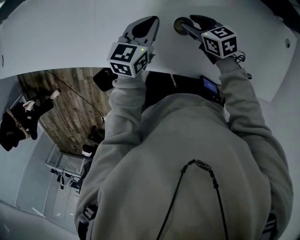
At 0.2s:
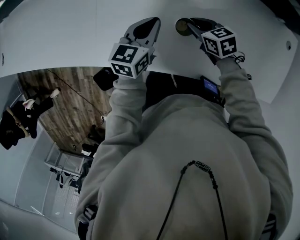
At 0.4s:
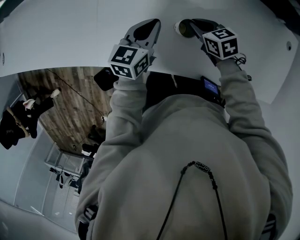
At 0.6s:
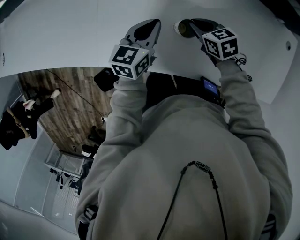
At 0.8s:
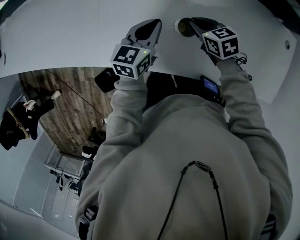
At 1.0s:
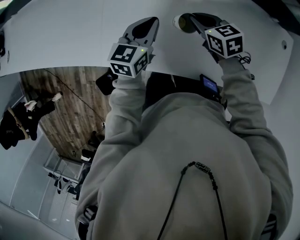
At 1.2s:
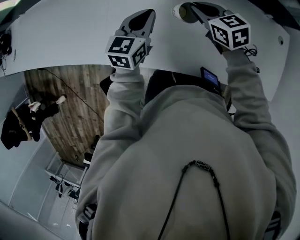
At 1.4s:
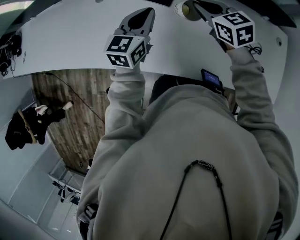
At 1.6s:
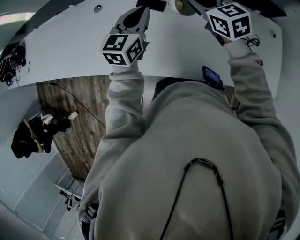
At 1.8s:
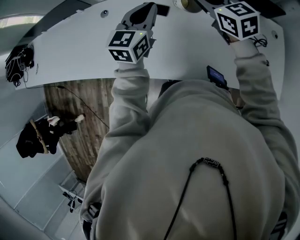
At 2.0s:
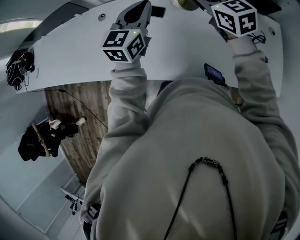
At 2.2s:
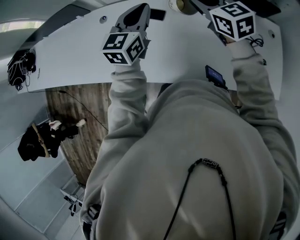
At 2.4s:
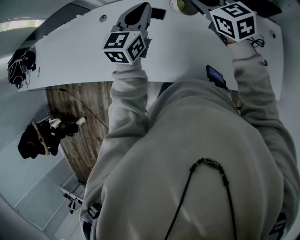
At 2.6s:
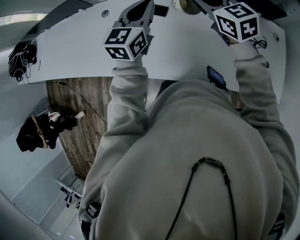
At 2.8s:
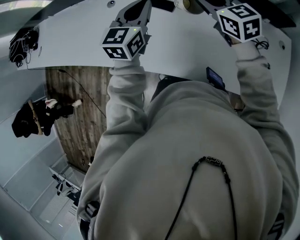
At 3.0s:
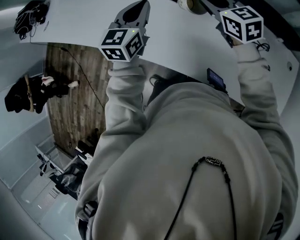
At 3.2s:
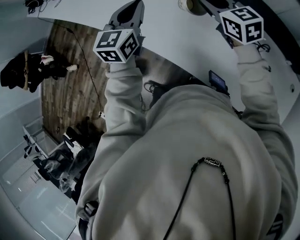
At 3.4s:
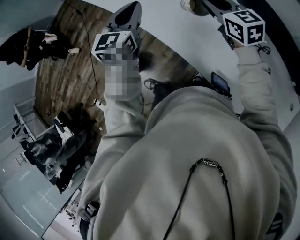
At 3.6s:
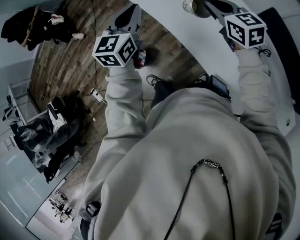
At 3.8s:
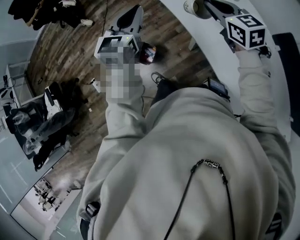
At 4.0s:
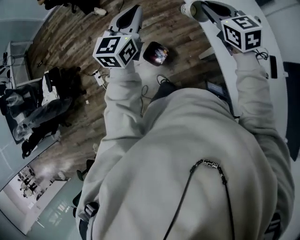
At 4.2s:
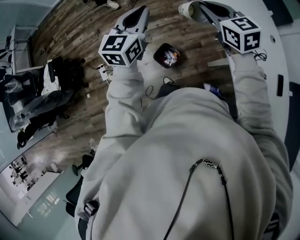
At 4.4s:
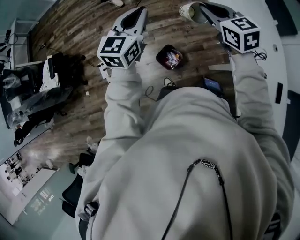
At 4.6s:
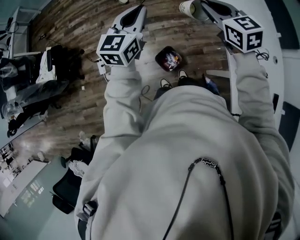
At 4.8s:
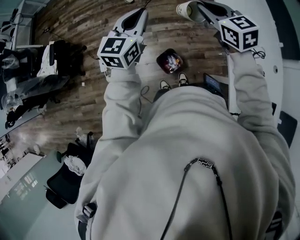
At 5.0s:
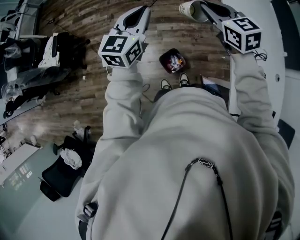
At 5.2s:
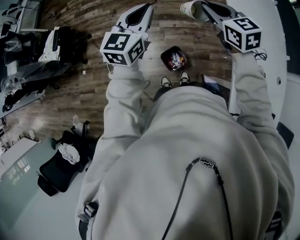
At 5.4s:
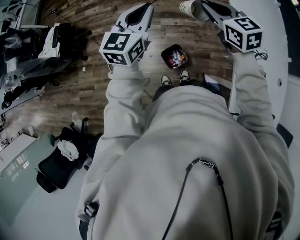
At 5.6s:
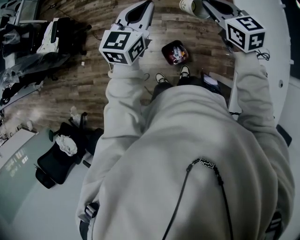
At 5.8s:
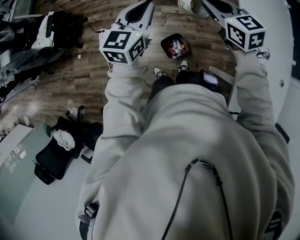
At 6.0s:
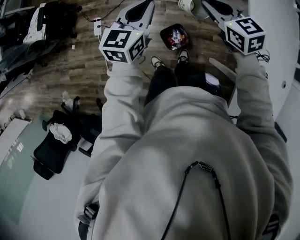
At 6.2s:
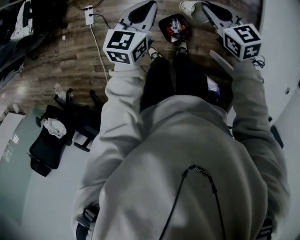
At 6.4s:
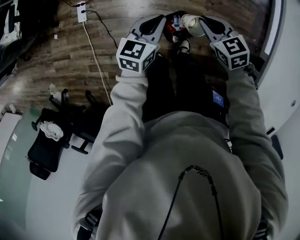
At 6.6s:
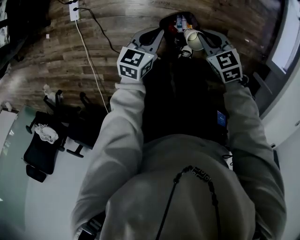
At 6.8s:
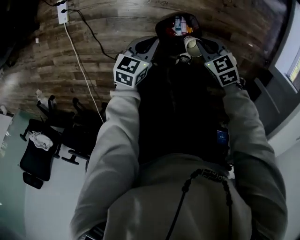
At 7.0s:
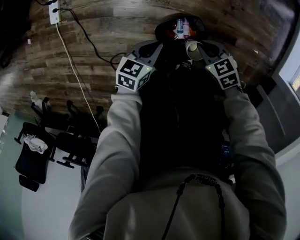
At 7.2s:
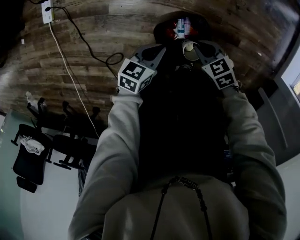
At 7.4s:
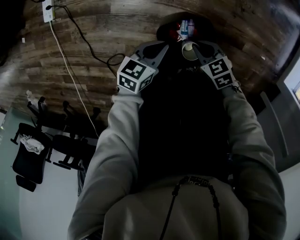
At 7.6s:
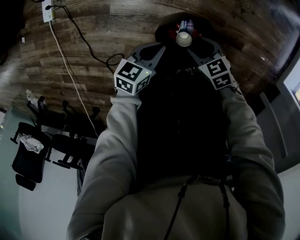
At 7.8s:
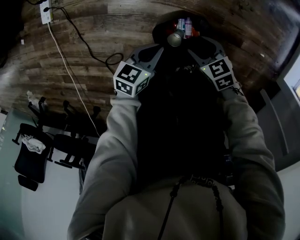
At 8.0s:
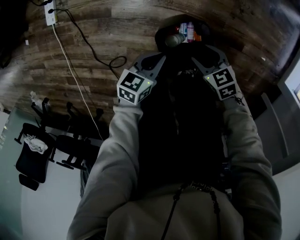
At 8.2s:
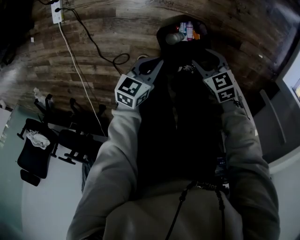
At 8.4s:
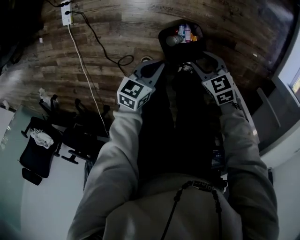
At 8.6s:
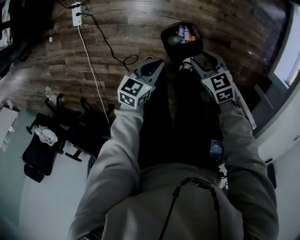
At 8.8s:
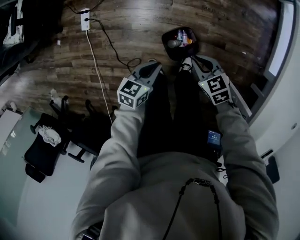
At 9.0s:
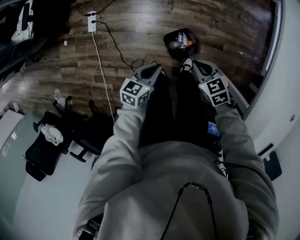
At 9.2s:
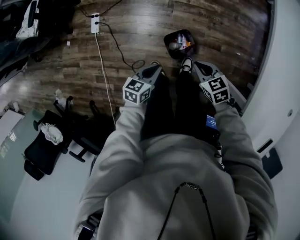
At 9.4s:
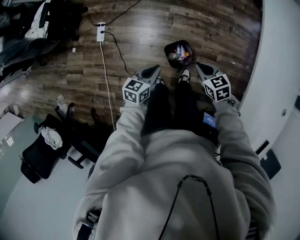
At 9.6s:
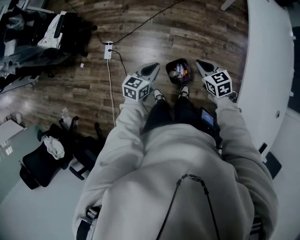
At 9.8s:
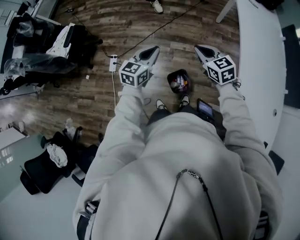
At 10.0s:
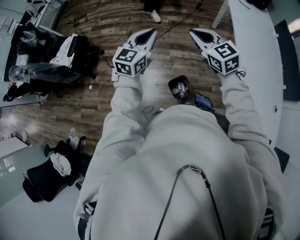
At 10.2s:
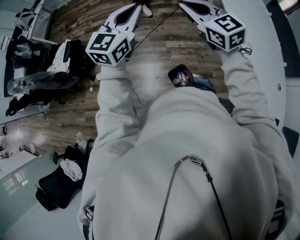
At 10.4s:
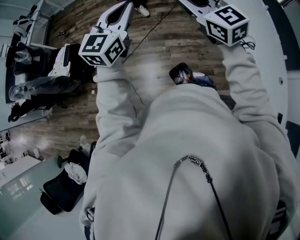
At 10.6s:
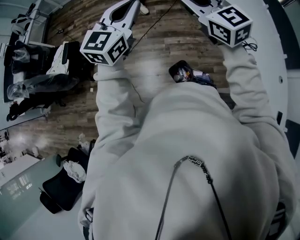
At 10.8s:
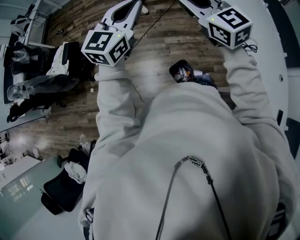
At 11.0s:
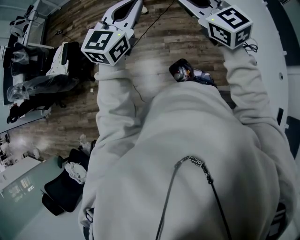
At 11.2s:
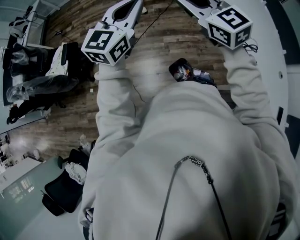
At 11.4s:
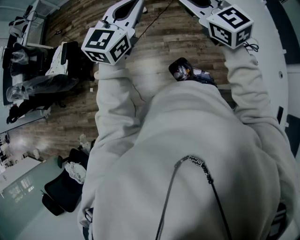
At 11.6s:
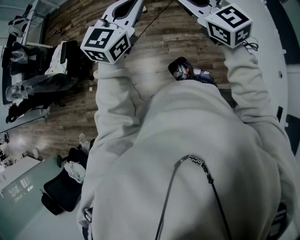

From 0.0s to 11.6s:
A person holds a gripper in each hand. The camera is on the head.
From 0.0s to 1.4s: Both grippers move upward, about 20 cm. The right gripper changes its angle by approximately 20 degrees, and closes.
From 1.4s to 2.8s: The two grippers go roughly 5 cm upward.
From 2.8s to 4.4s: Both grippers are carried about 90 cm. The right gripper rotates some 60 degrees. Meanwhile the left gripper turns by approximately 70 degrees.
From 4.4s to 5.8s: The right gripper goes some 15 cm to the left and forward. Meanwhile the left gripper goes approximately 10 cm to the left.
From 5.8s to 7.2s: The two grippers go about 80 cm downward. The left gripper swivels some 40 degrees. The right gripper points its fingers about 30 degrees further downward.
From 7.2s to 8.8s: The grippers both shift upward by about 35 cm. The right gripper opens, then closes once more.
From 8.8s to 10.2s: The two grippers go approximately 60 cm upward. The right gripper points its fingers approximately 40 degrees further upward, while the left gripper tips its fingers upward by roughly 40 degrees.
From 10.2s to 11.6s: The right gripper ends up some 5 cm from where it was.

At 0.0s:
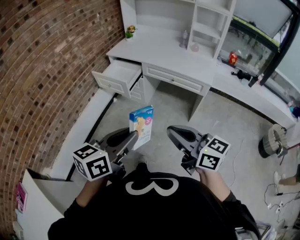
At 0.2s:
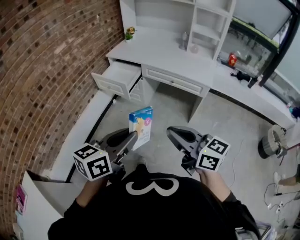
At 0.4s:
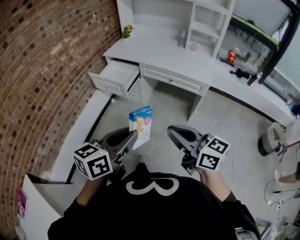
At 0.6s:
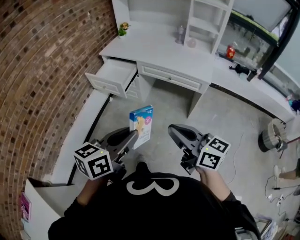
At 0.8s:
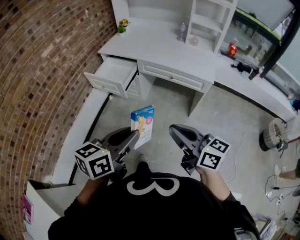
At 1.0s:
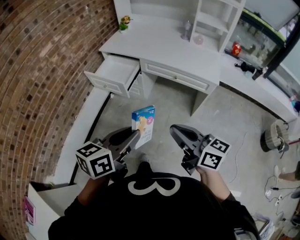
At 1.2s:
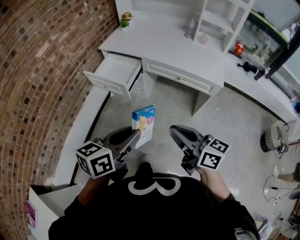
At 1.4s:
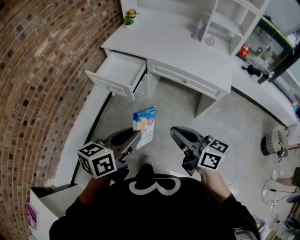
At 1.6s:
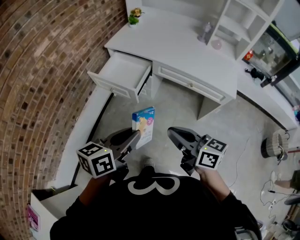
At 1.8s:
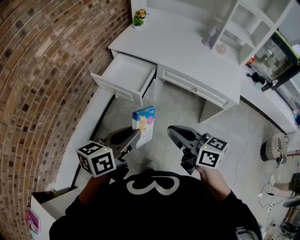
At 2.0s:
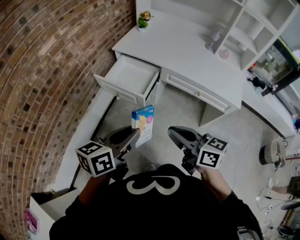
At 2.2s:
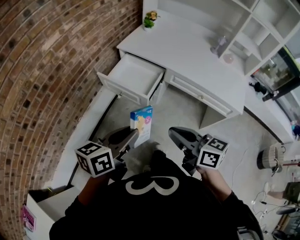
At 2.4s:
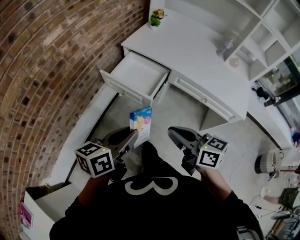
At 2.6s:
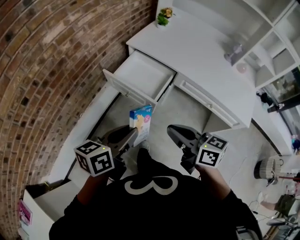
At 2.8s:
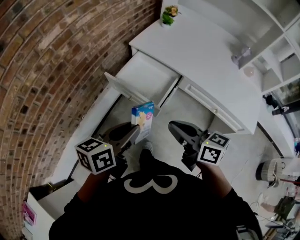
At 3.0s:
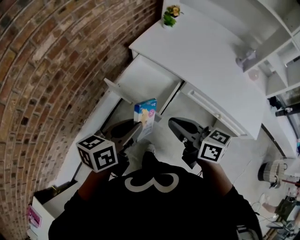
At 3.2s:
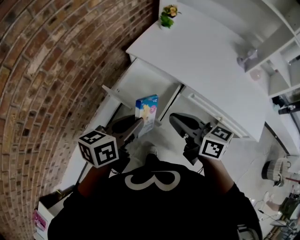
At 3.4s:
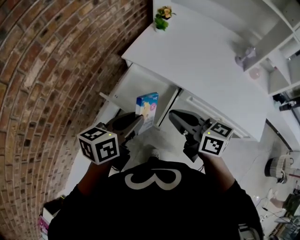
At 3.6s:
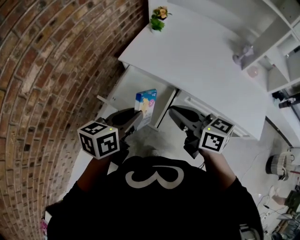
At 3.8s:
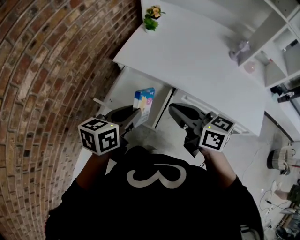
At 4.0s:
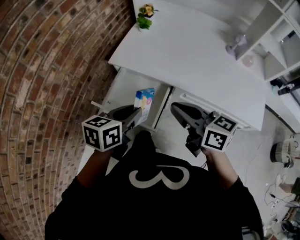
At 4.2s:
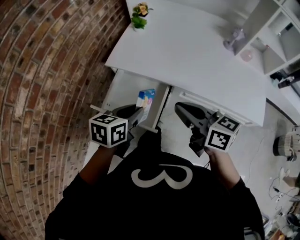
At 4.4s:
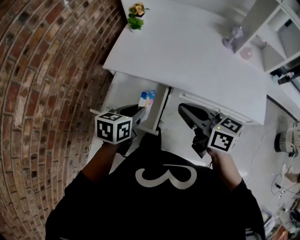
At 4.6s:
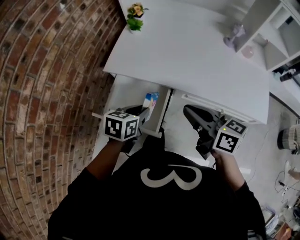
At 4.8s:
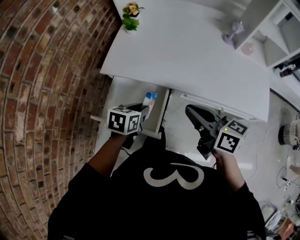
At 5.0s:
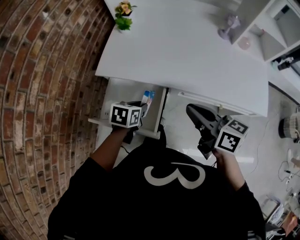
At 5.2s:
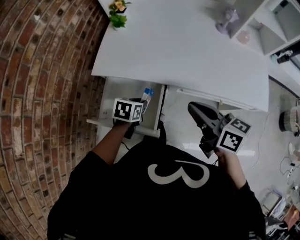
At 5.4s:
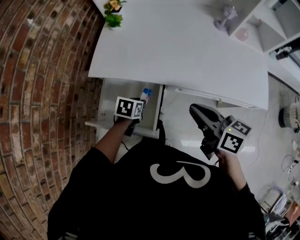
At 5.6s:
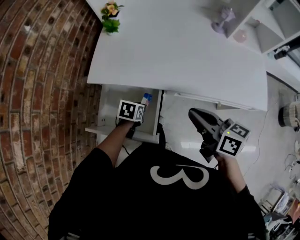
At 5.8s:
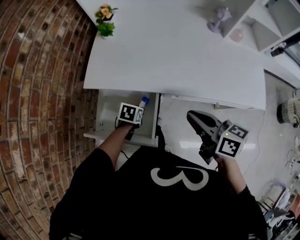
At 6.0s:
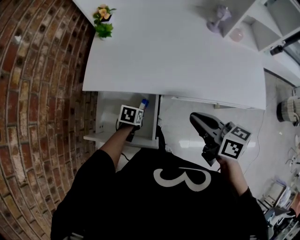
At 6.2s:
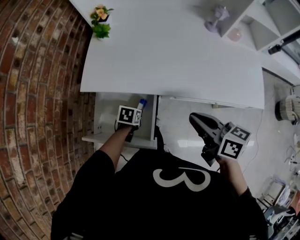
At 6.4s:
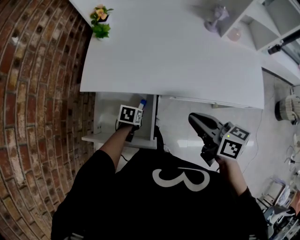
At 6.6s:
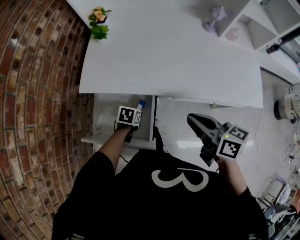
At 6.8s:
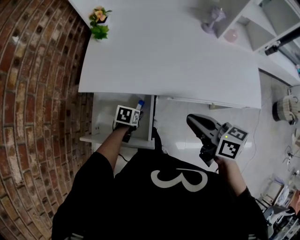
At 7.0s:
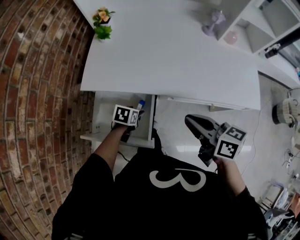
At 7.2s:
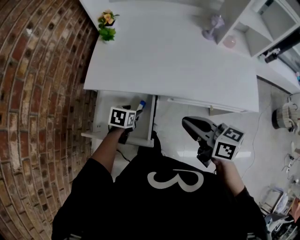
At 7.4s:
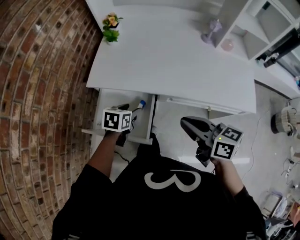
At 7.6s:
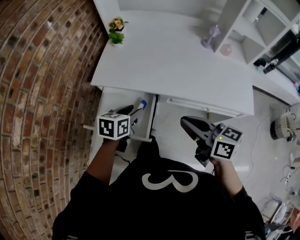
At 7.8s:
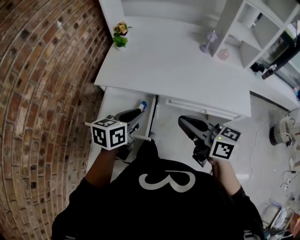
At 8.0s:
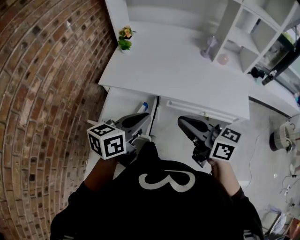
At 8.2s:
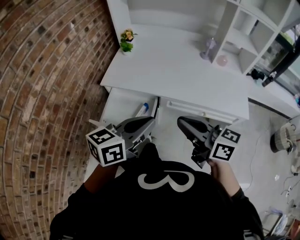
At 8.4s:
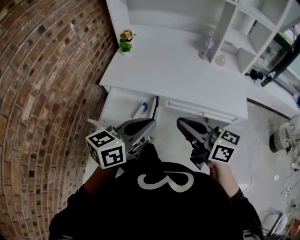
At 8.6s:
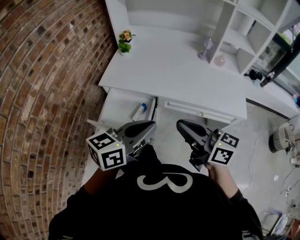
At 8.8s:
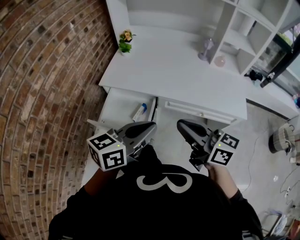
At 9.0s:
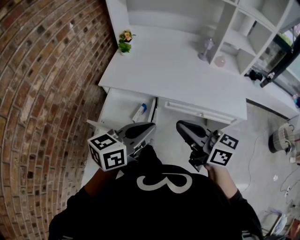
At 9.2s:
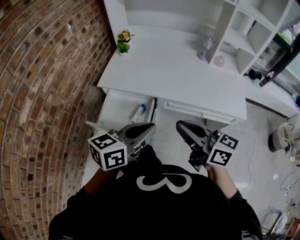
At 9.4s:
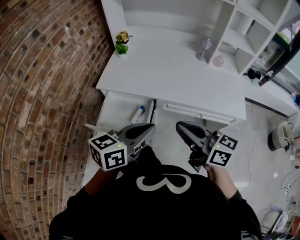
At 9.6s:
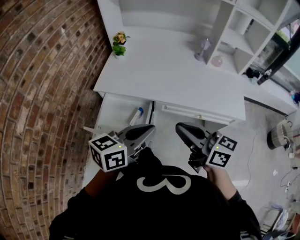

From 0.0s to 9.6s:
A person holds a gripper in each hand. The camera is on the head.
From 0.0s to 1.6s: The grippers both shift forward by roughly 25 cm.
From 1.6s to 3.2s: Both grippers travel together forward, some 30 cm.
From 3.2s to 4.8s: The left gripper goes approximately 25 cm forward, downward and to the right, and turns by some 40 degrees; the right gripper moves to the right and forward, approximately 15 cm, and changes its angle by some 20 degrees.
From 4.8s to 6.4s: The left gripper goes about 20 cm downward, and swivels roughly 20 degrees, while the right gripper travels to the right by approximately 5 cm.
From 6.4s to 8.0s: The left gripper moves upward, roughly 35 cm, tips its fingers upward by some 50 degrees, and opens, then closes once more. The right gripper heads upward and backward, covering approximately 15 cm, and turns by some 20 degrees.

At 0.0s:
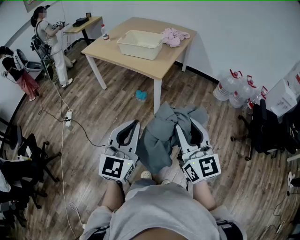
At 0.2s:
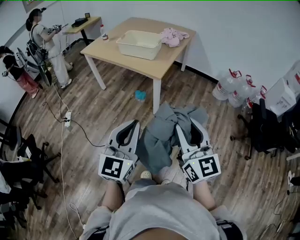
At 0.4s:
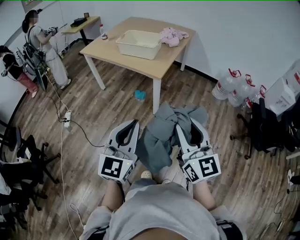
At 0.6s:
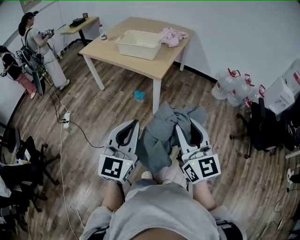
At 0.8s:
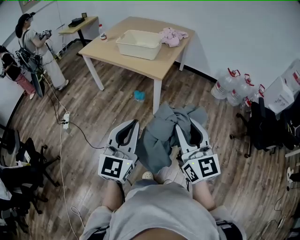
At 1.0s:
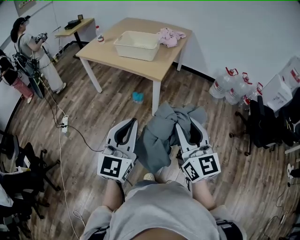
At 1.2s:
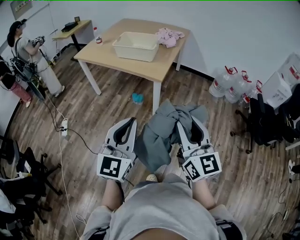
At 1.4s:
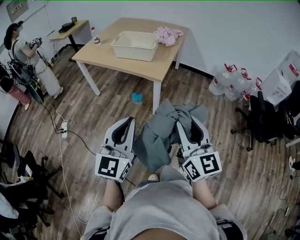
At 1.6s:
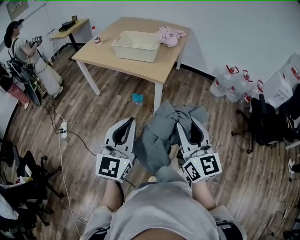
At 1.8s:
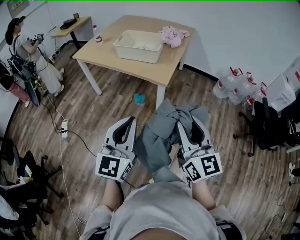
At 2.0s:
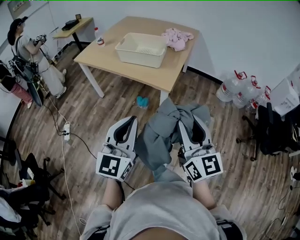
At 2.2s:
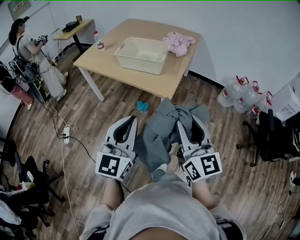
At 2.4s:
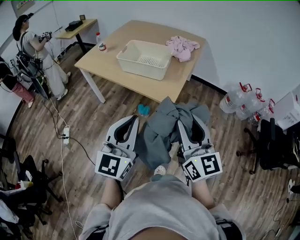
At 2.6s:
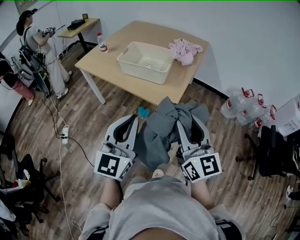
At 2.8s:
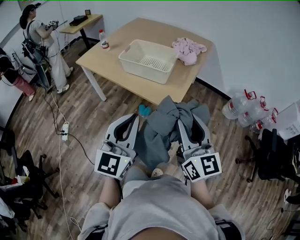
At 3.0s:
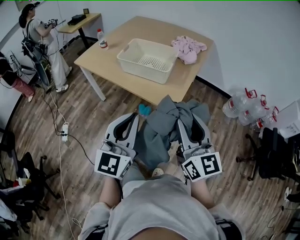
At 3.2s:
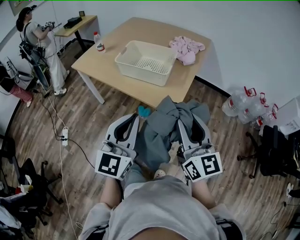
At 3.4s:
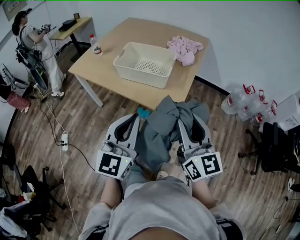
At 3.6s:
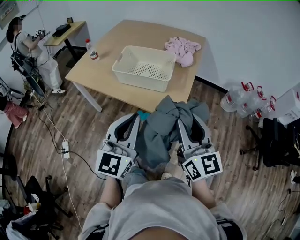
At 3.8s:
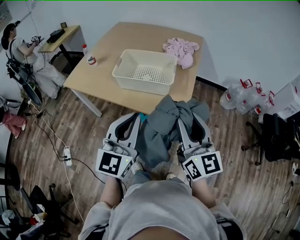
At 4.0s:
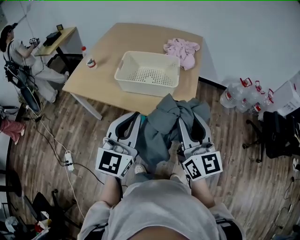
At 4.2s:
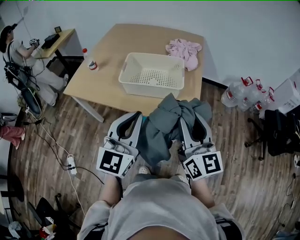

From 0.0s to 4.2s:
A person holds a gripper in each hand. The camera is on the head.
From 0.0s to 1.4s: The right gripper travels to the left by about 5 cm; the left gripper shifts about 10 cm to the left and forward.
From 1.4s to 2.8s: Both grippers travel together forward, approximately 25 cm.
From 2.8s to 4.2s: The left gripper shifts about 20 cm forward and to the left. Meanwhile the right gripper goes roughly 20 cm to the left and forward.
